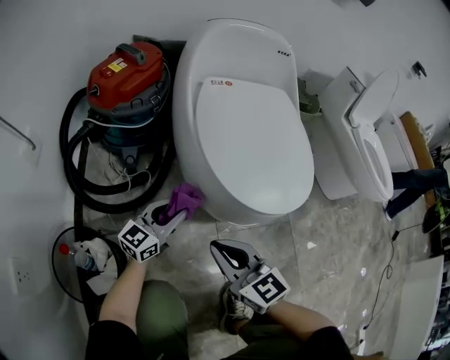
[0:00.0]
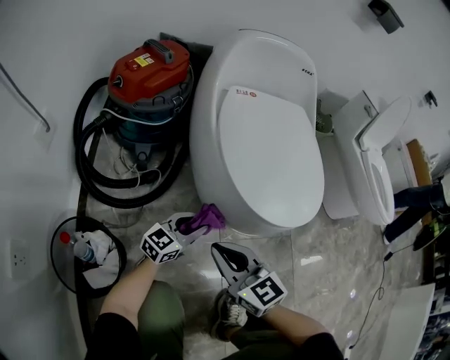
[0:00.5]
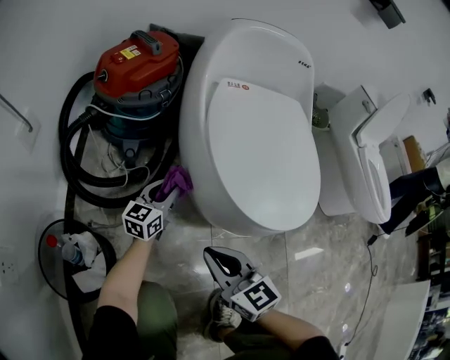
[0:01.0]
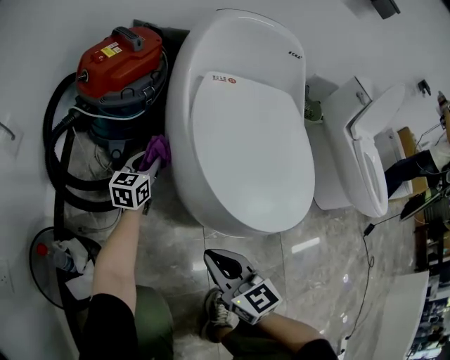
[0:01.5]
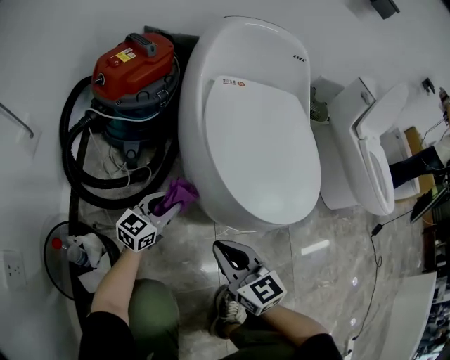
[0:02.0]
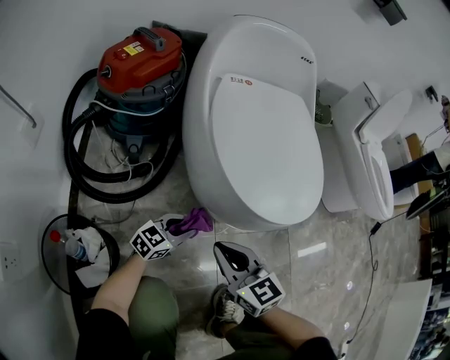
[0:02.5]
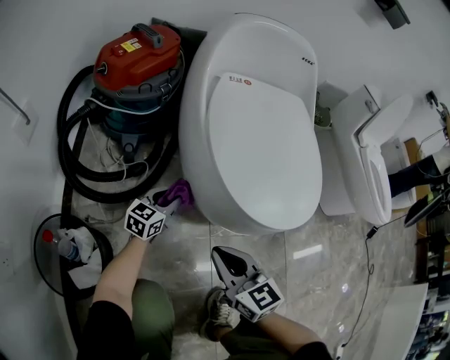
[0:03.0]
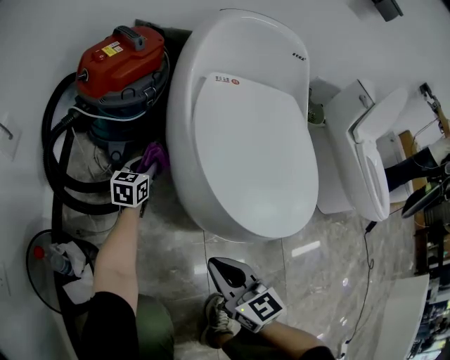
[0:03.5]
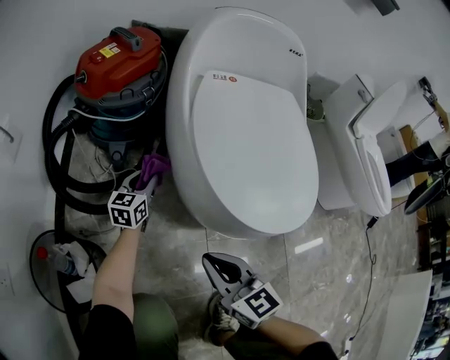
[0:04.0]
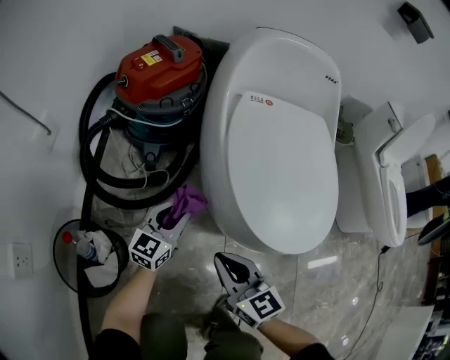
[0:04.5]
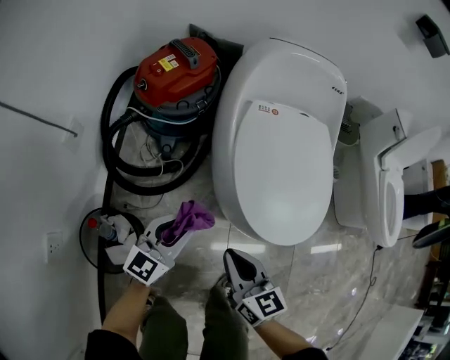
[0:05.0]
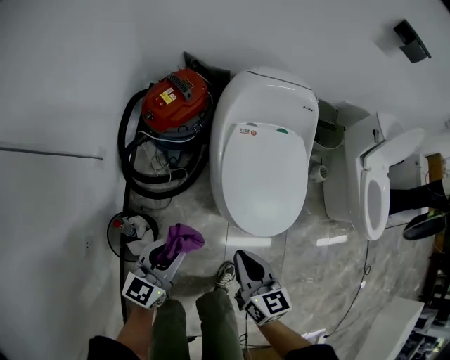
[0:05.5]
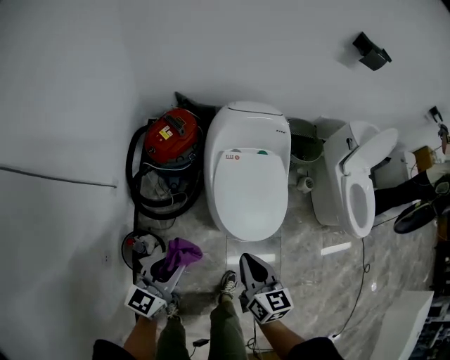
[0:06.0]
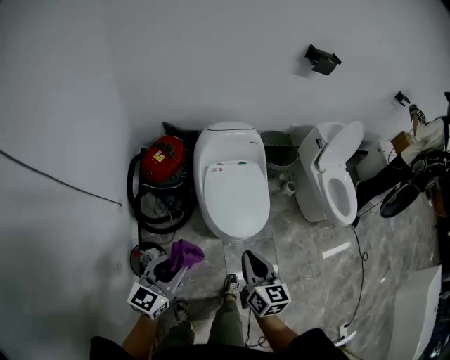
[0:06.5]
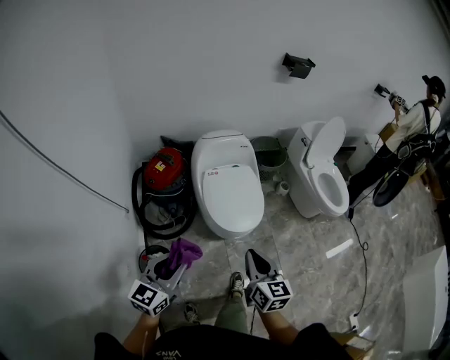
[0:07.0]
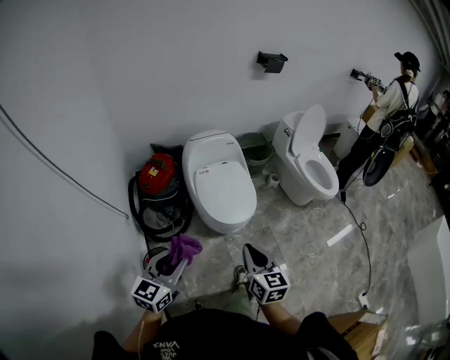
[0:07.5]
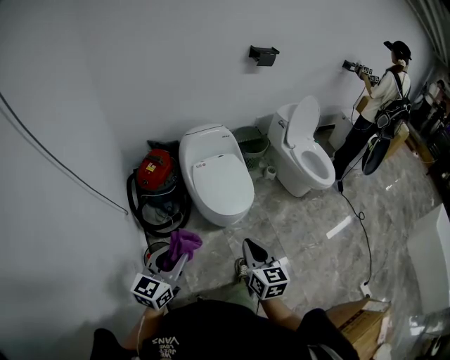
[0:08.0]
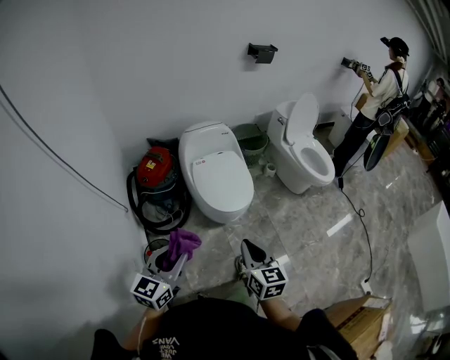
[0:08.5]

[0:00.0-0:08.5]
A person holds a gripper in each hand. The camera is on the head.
0:00.0 to 0:02.0: The left gripper moves about 20 cm forward and comes back.
0:02.0 to 0:04.0: The left gripper moves forward and backward over some 25 cm, changing direction 2 times, and swivels approximately 30 degrees.
0:04.0 to 0:06.5: The left gripper moves upward and backward, roughly 70 cm, while the right gripper shifts about 50 cm upward, and changes its angle by approximately 30 degrees.
0:06.5 to 0:08.5: The right gripper shifts about 20 cm backward; the left gripper shifts roughly 15 cm backward and upward.

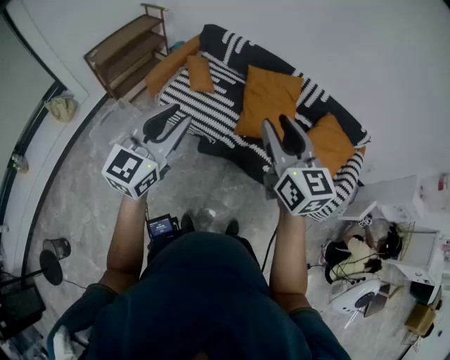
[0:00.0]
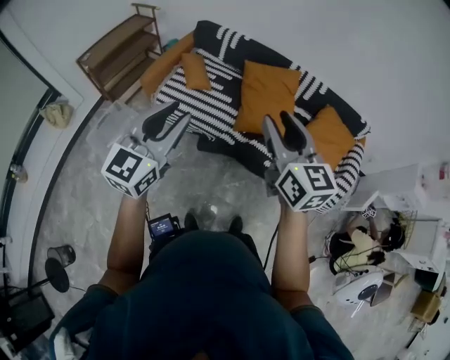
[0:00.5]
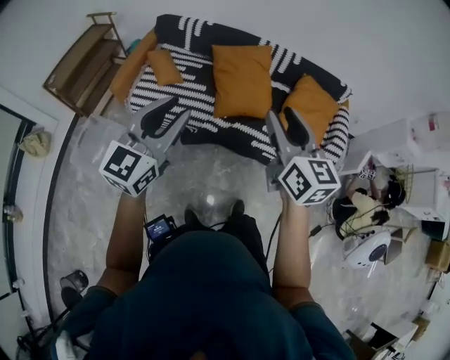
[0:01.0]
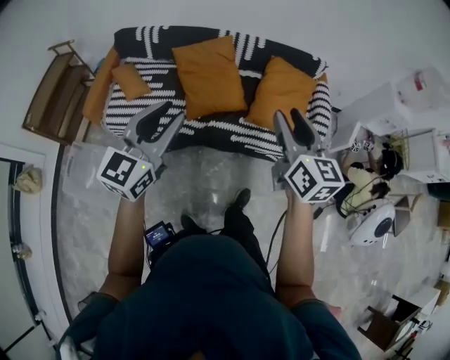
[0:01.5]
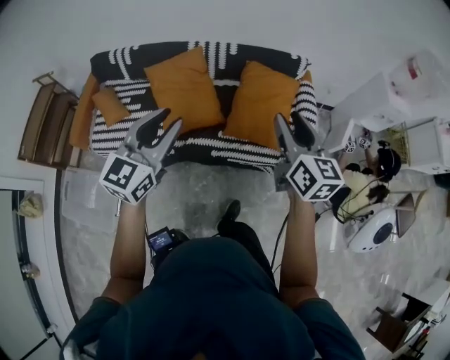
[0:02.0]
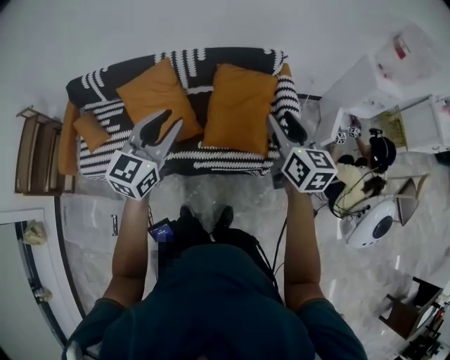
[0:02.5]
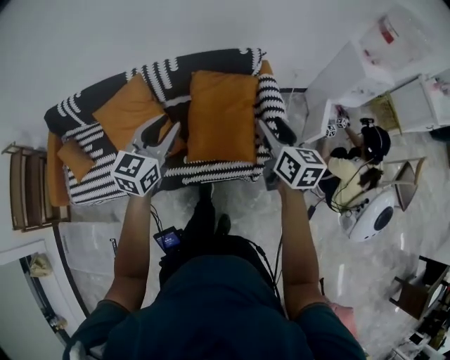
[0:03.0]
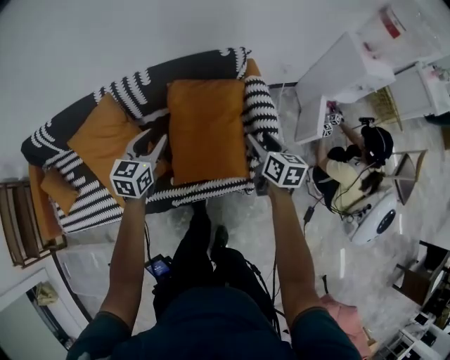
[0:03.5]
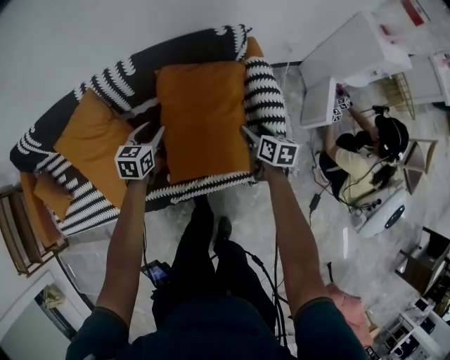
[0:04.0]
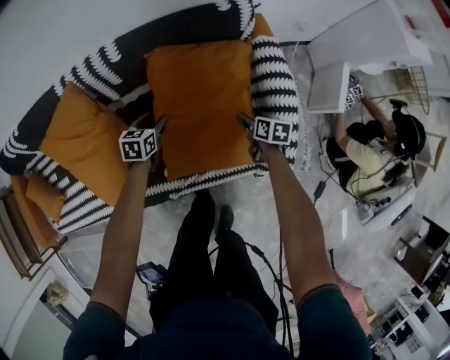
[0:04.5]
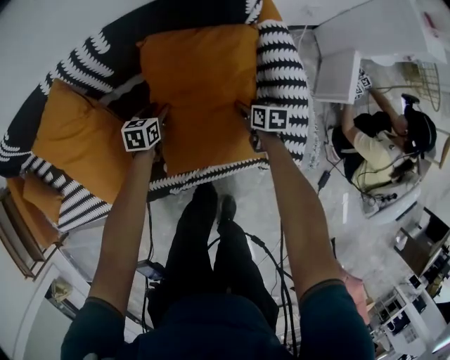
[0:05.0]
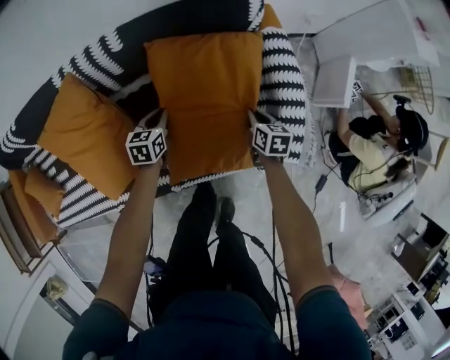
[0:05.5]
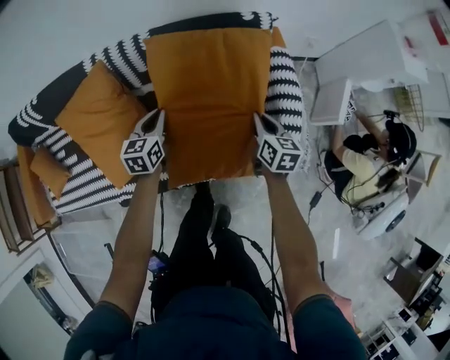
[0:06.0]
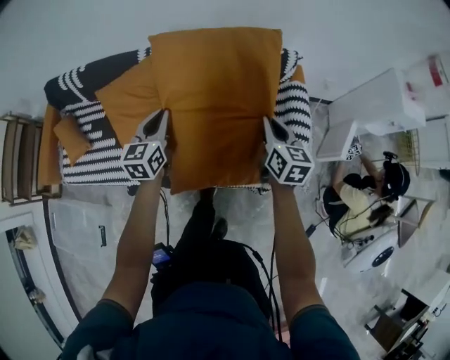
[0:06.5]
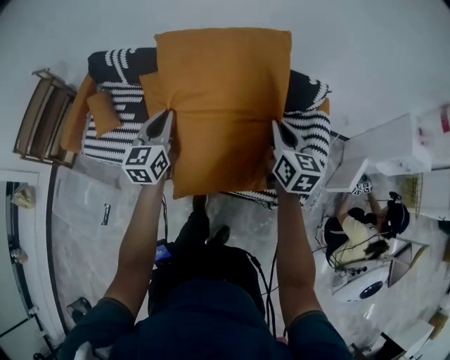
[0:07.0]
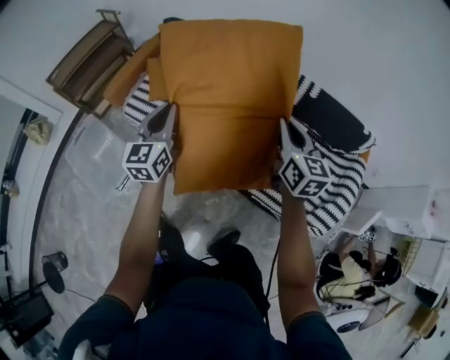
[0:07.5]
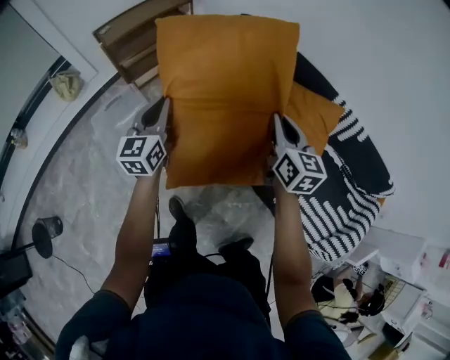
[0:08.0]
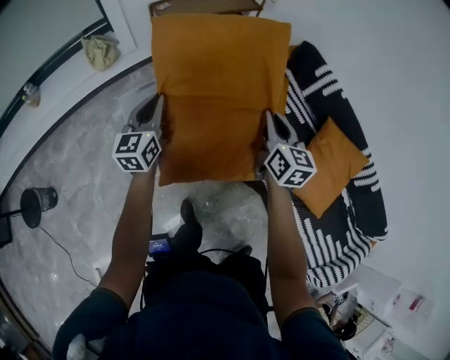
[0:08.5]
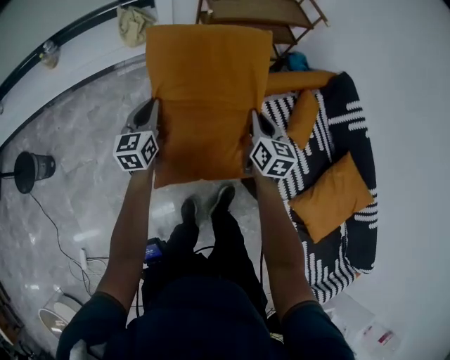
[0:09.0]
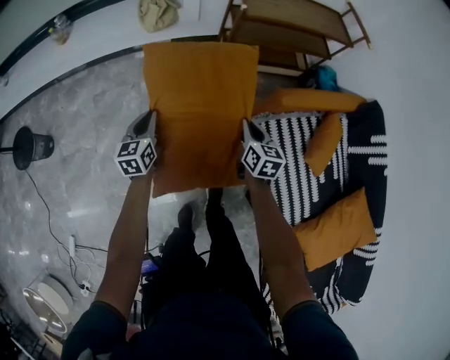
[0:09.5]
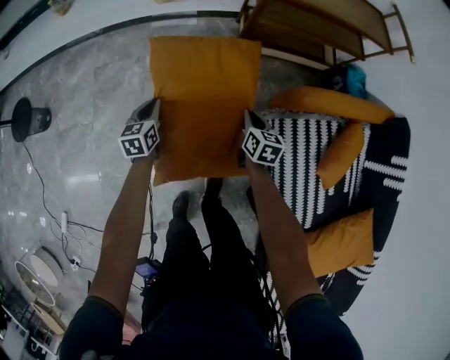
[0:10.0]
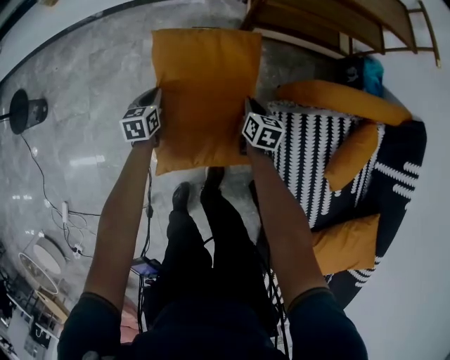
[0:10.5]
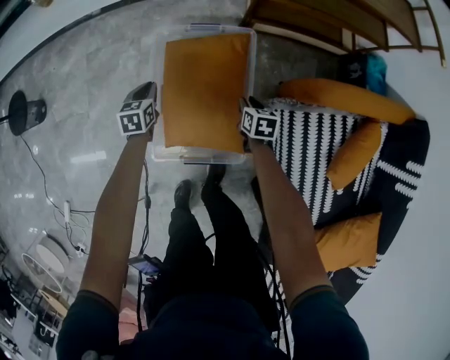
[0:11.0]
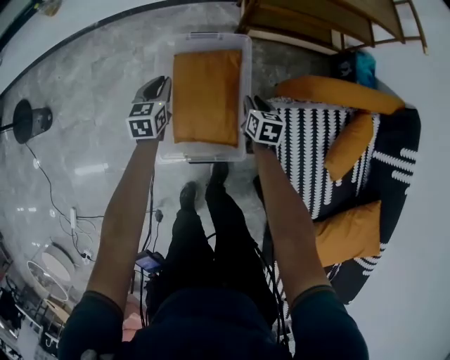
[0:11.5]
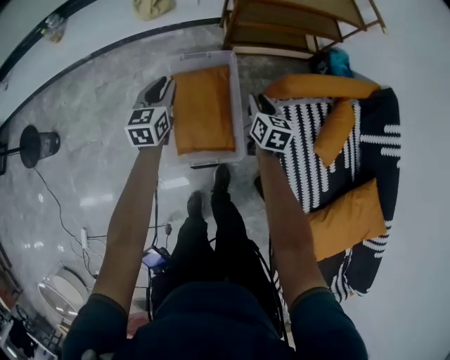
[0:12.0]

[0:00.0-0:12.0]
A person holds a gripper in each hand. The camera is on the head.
0:00.0 to 0:02.0: The right gripper ends up roughly 40 cm from where it was, and rotates about 30 degrees. The left gripper ends up roughly 40 cm from where it was, and turns by approximately 30 degrees.
0:02.0 to 0:04.0: Both grippers move downward and forward, some 60 cm. The left gripper tilts its fingers about 30 degrees downward. Meanwhile the right gripper angles its fingers downward, by roughly 30 degrees.
0:04.0 to 0:06.0: The right gripper is displaced to the left by about 5 cm, reaches roughly 20 cm downward, then returns, and closes up; the left gripper reaches some 20 cm downward, then returns, and closes its fingers.
0:06.0 to 0:08.0: The two grippers travel together, some 80 cm. The right gripper swivels roughly 60 degrees. Meanwhile the left gripper swivels approximately 60 degrees.
0:08.0 to 0:10.0: The two grippers travel together, about 60 cm. The left gripper rotates some 50 degrees; the right gripper rotates about 50 degrees.
0:10.0 to 0:12.0: Both grippers travel together upward, some 15 cm.

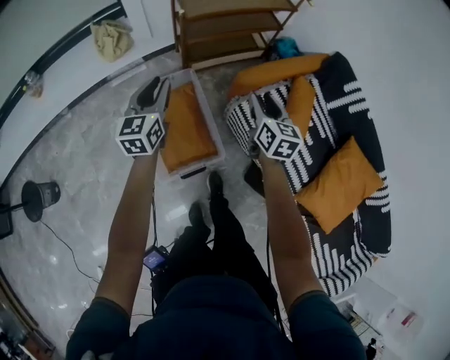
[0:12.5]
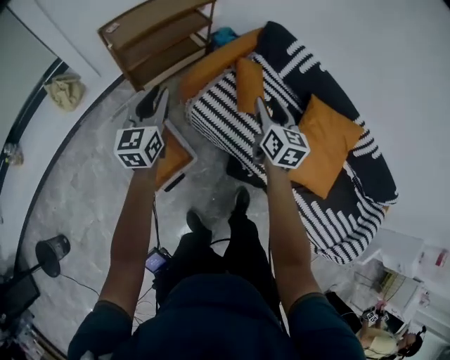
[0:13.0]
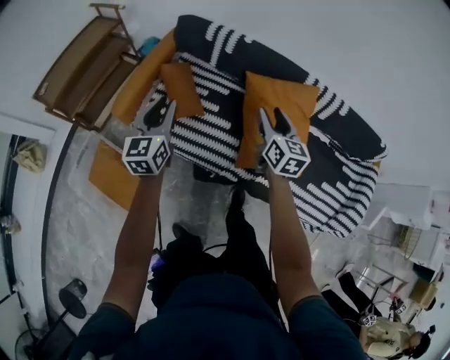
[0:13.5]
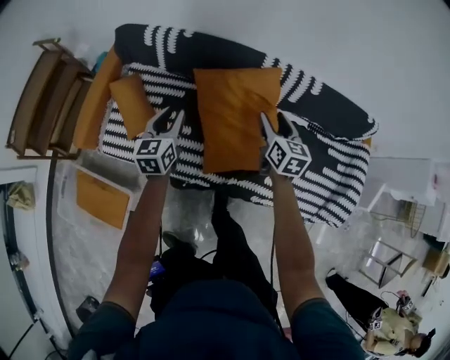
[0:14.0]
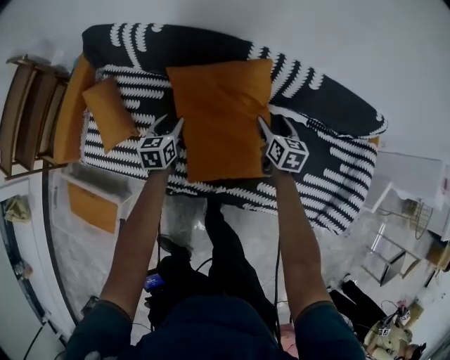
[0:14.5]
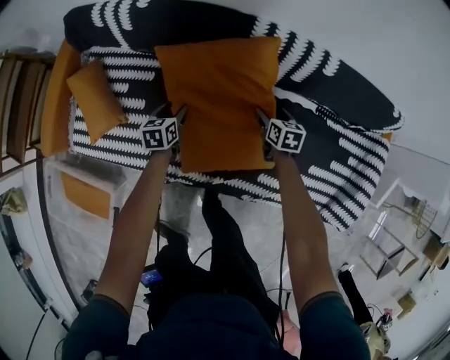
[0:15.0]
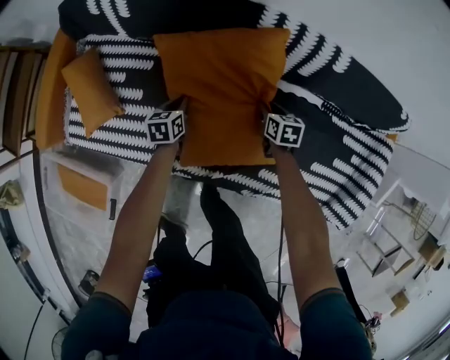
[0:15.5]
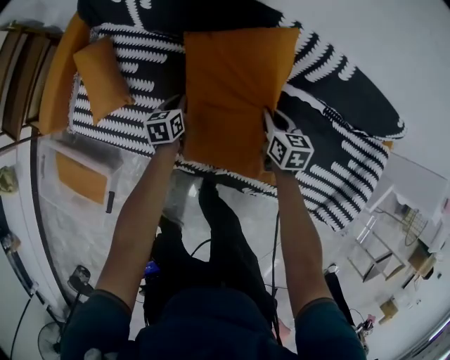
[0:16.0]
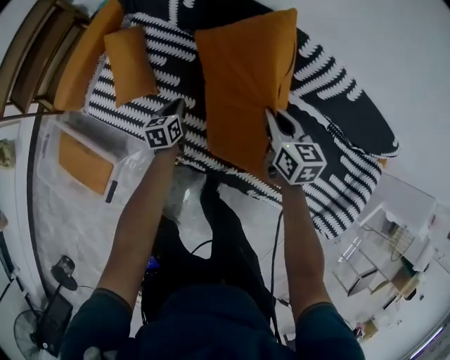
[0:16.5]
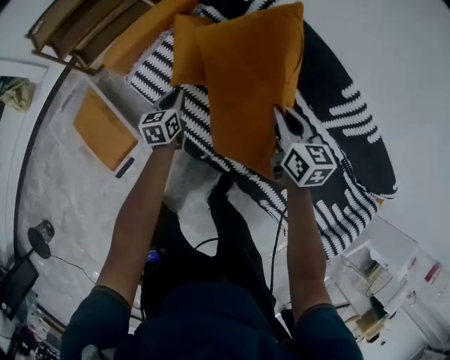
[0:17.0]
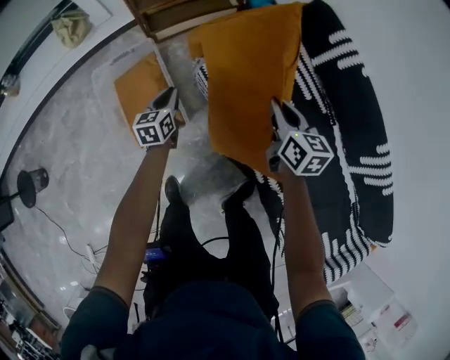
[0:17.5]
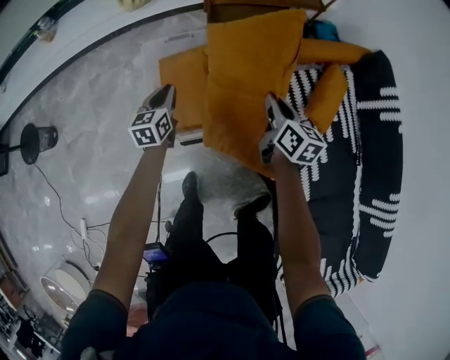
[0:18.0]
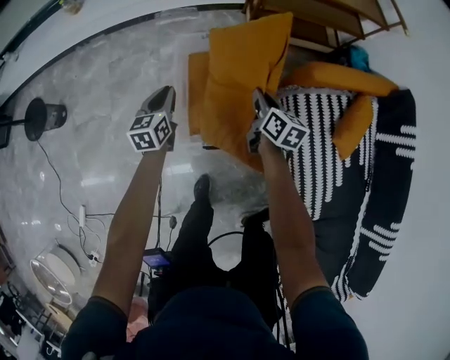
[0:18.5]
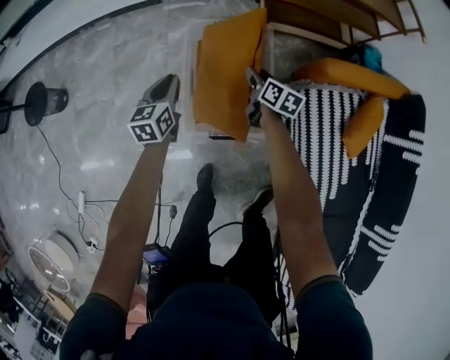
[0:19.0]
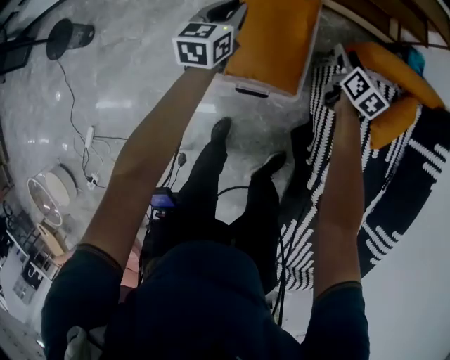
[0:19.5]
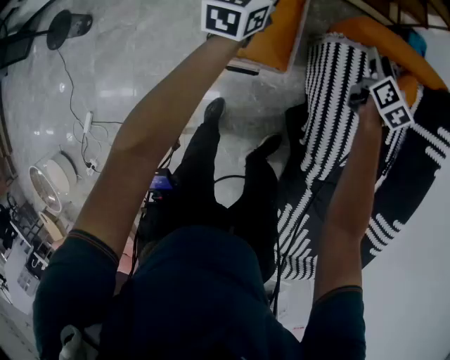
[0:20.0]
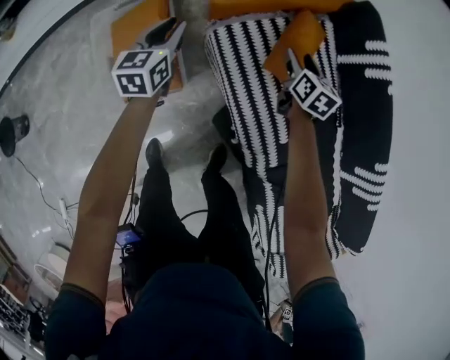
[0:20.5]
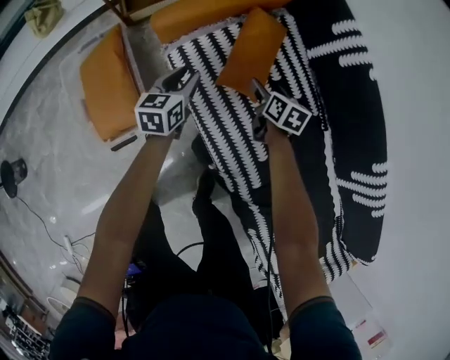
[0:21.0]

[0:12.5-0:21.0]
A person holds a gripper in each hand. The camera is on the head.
0:12.5 to 0:14.5: Both grippers are carried about 90 cm. The right gripper changes its angle by approximately 50 degrees, and opens. The left gripper rotates roughly 60 degrees.
0:14.5 to 0:16.5: The right gripper shifts approximately 15 cm to the left, travels downward and back again, some 15 cm each way, swivels approximately 20 degrees, and closes. Meanwhile the left gripper is displaced to the left, downward and backward by approximately 15 cm, swivels some 20 degrees, and closes its fingers.
0:16.5 to 0:19.0: Both grippers are carried some 90 cm. The right gripper rotates about 50 degrees, and opens up; the left gripper changes its angle by roughly 60 degrees.
0:19.0 to 0:21.0: The pair of grippers is taken about 60 cm. The right gripper changes its angle by some 20 degrees, and opens. Meanwhile the left gripper swivels approximately 30 degrees, and opens its fingers.
